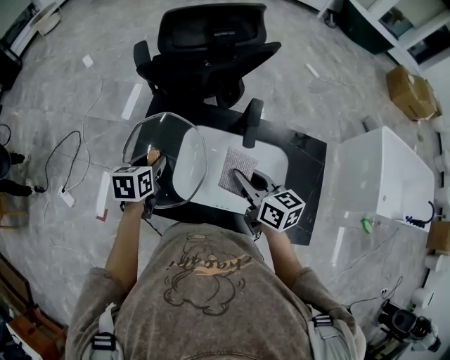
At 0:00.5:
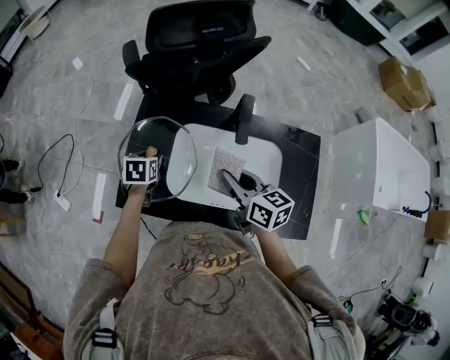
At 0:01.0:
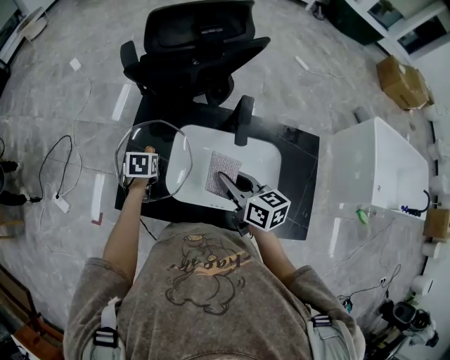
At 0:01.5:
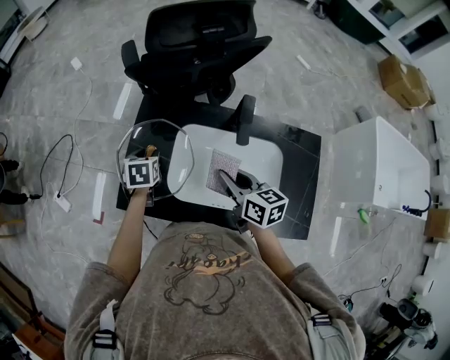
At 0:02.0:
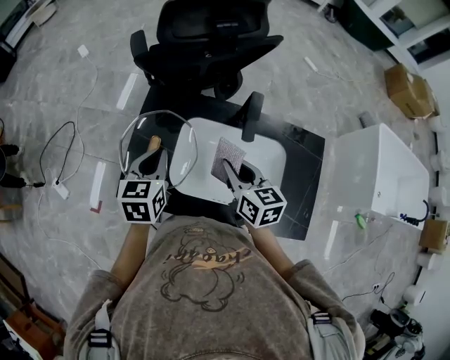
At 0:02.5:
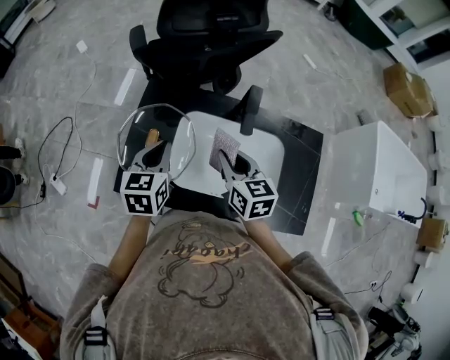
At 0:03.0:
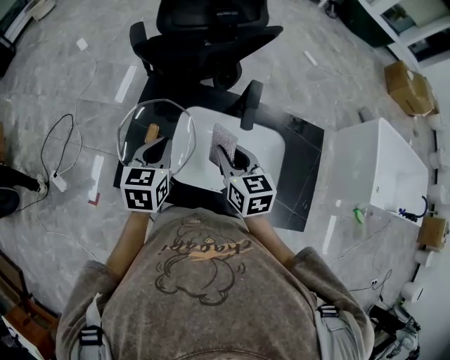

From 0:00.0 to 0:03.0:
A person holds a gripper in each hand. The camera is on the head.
From 0:00.0 to 0:01.5: The left gripper moves downward, some 5 cm.
From 0:01.5 to 0:03.0: The left gripper shifts approximately 15 cm upward, backward and to the right, swivels approximately 20 degrees, and closes up.

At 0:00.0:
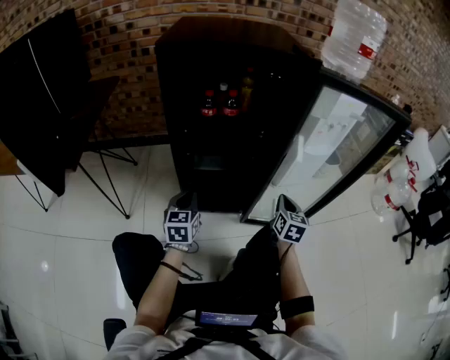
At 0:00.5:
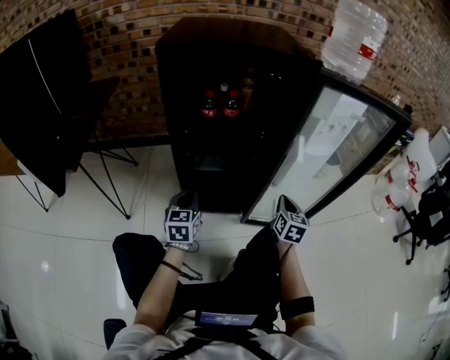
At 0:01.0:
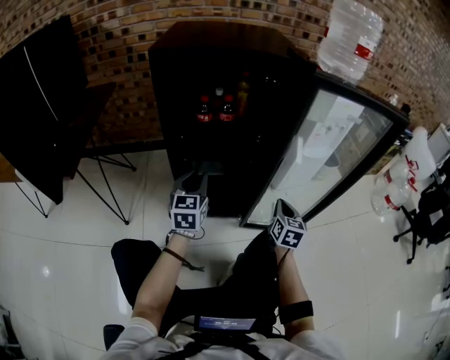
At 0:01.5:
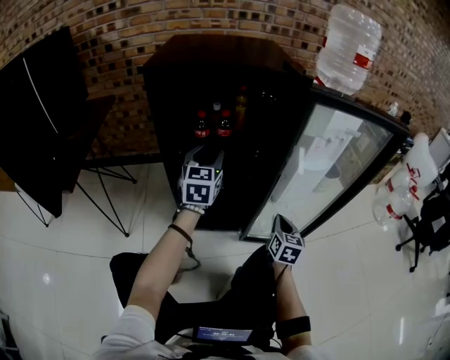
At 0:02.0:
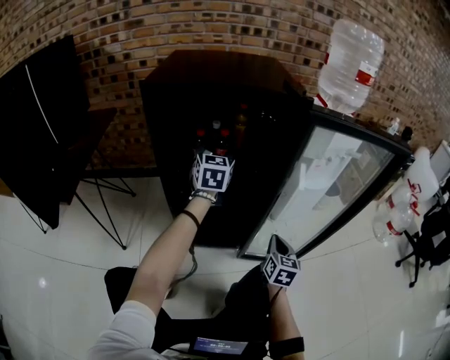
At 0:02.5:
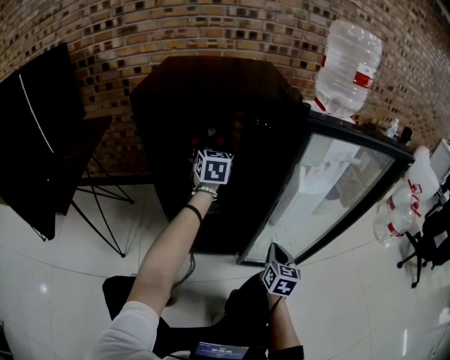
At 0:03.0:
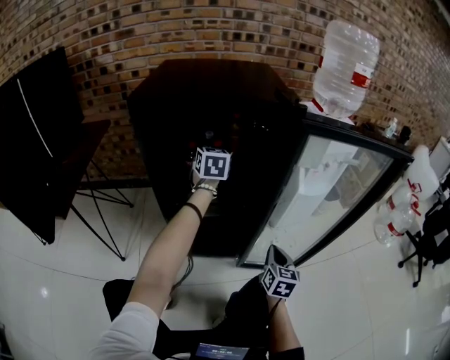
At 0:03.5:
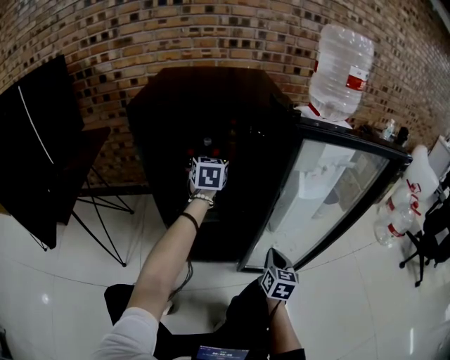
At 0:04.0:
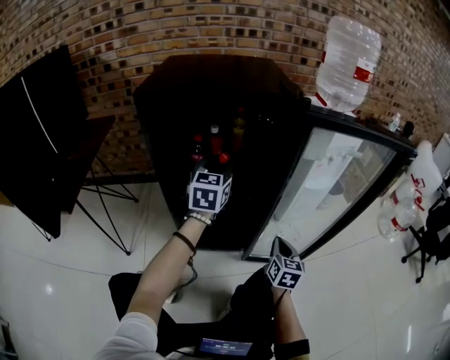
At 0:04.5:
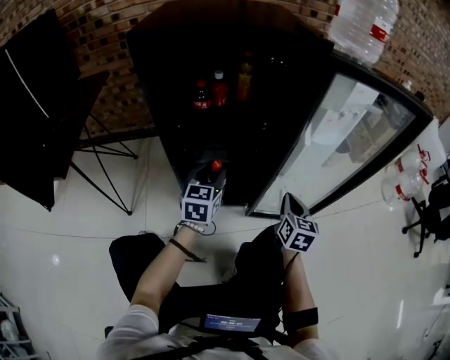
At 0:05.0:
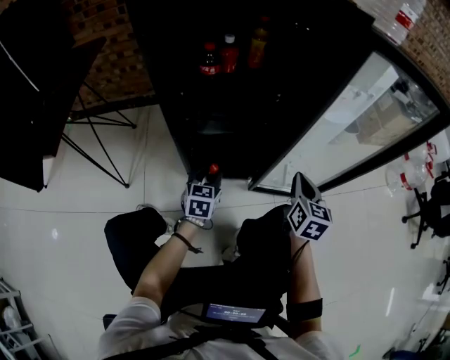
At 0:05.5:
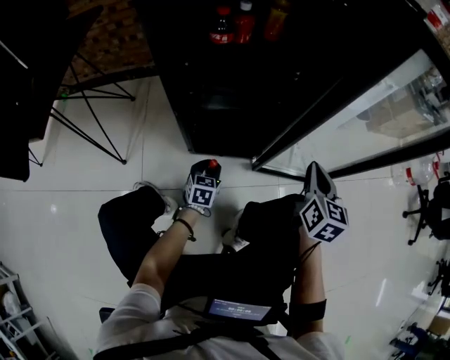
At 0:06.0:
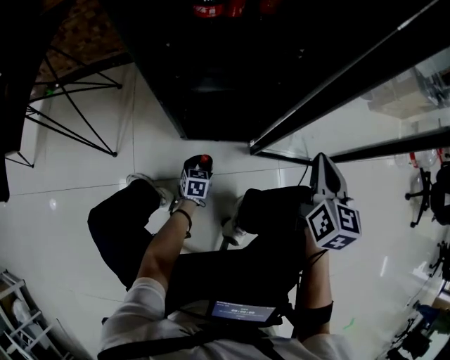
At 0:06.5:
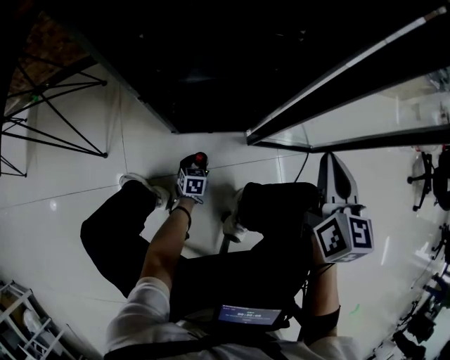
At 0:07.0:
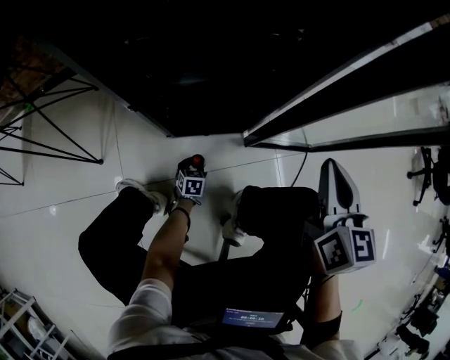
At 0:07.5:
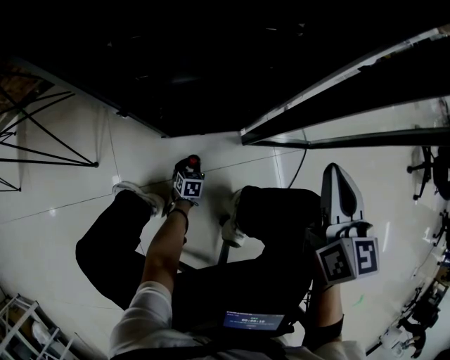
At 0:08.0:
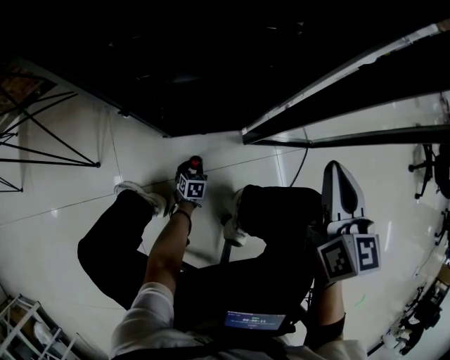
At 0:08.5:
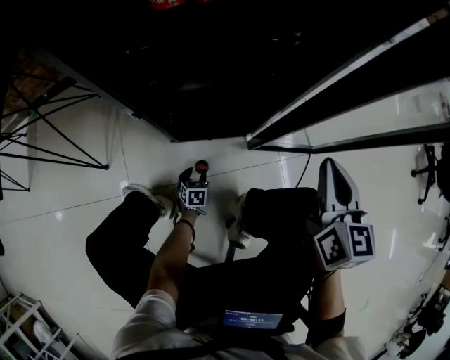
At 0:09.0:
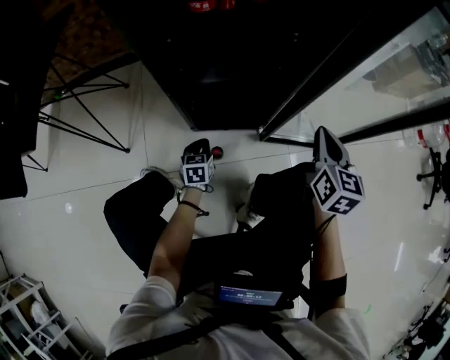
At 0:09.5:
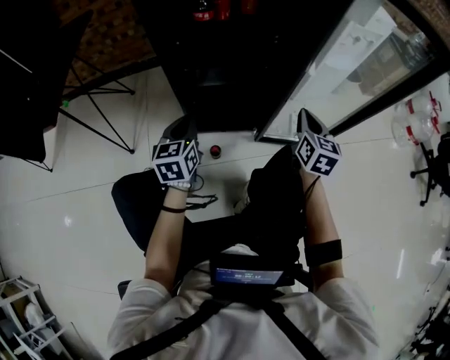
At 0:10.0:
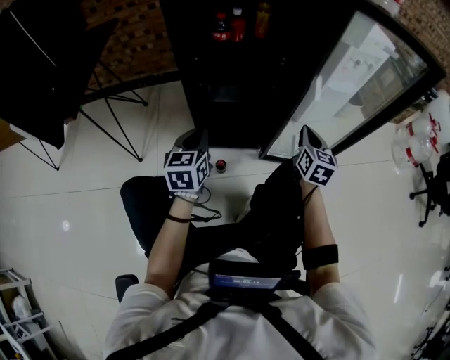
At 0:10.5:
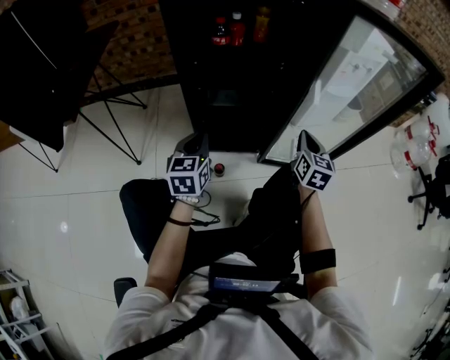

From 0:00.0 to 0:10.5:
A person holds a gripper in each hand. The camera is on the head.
From 0:00.0 to 0:02.0: The left gripper is displaced forward and upward by about 30 cm, and opens.
From 0:02.0 to 0:04.0: The left gripper closes.
From 0:04.0 to 0:06.5: The left gripper shifts about 70 cm downward, and angles its fingers downward, by about 40 degrees.
From 0:08.5 to 0:10.5: The left gripper goes about 50 cm upward, tips its fingers upward by approximately 40 degrees, and closes.

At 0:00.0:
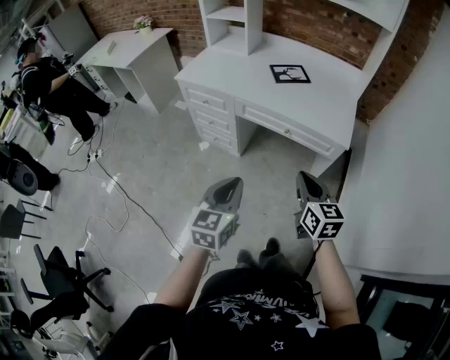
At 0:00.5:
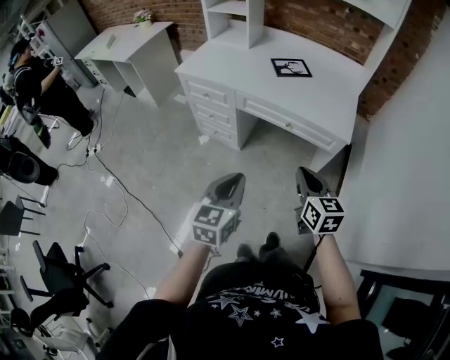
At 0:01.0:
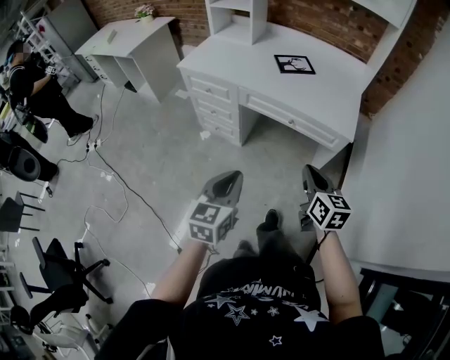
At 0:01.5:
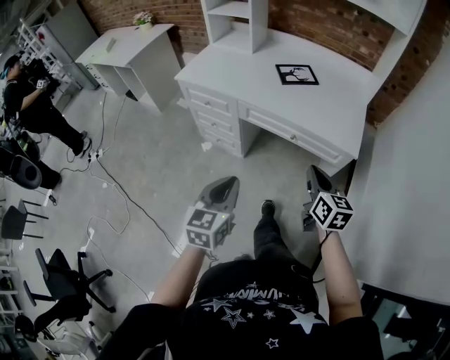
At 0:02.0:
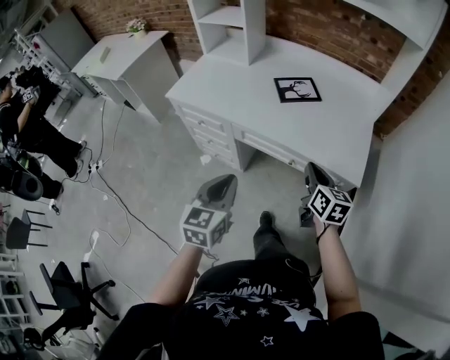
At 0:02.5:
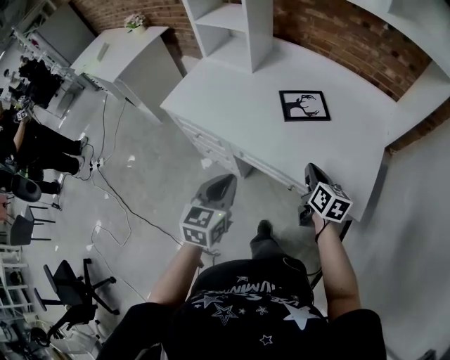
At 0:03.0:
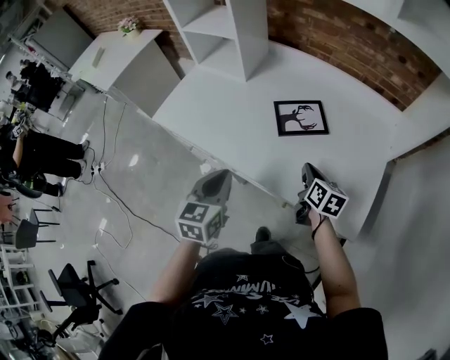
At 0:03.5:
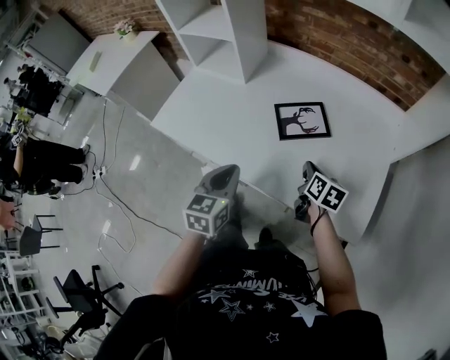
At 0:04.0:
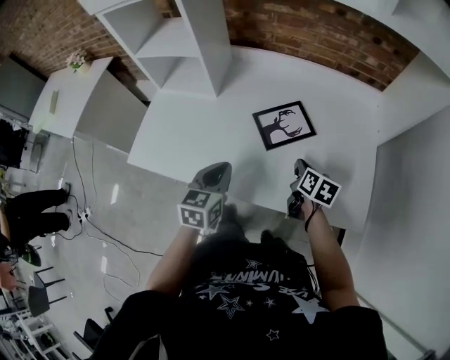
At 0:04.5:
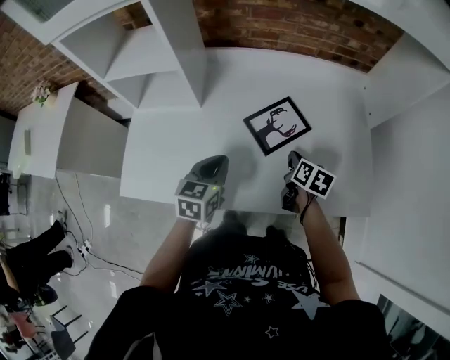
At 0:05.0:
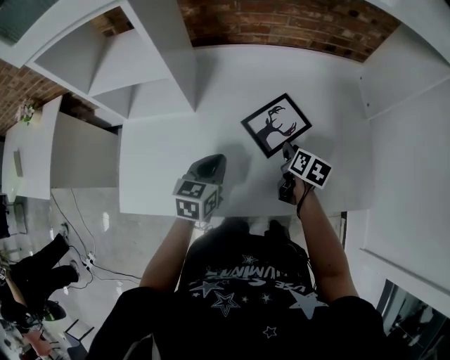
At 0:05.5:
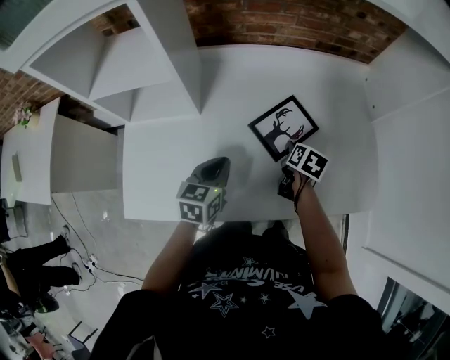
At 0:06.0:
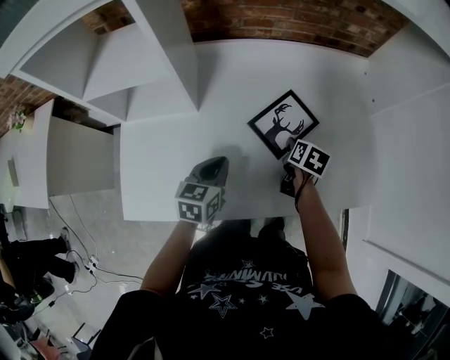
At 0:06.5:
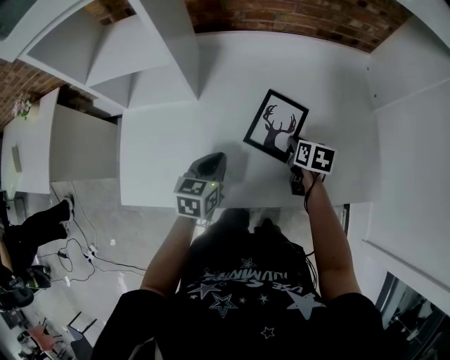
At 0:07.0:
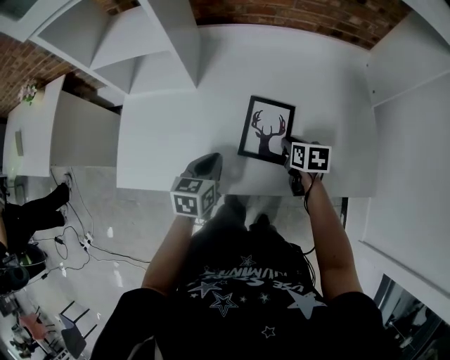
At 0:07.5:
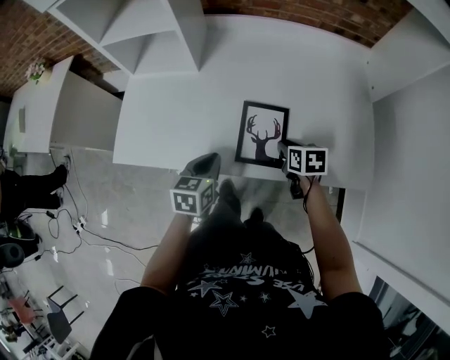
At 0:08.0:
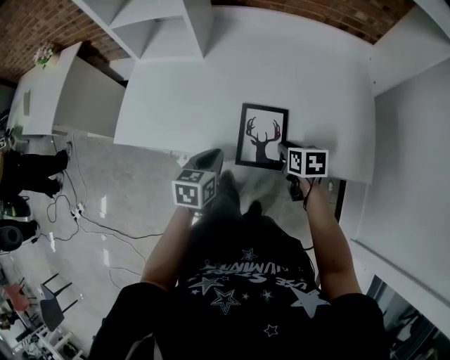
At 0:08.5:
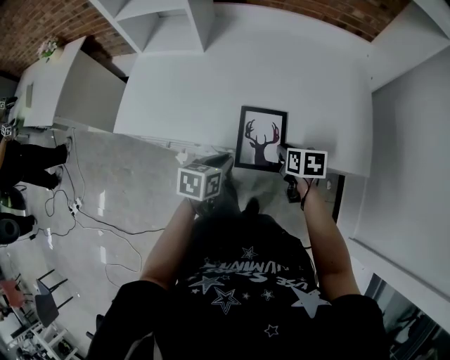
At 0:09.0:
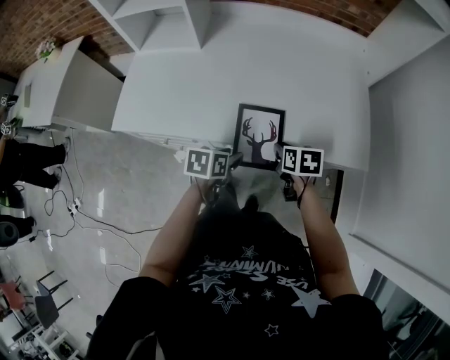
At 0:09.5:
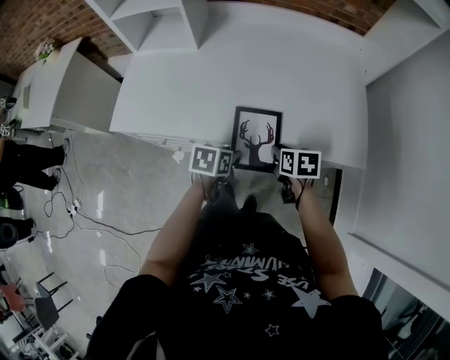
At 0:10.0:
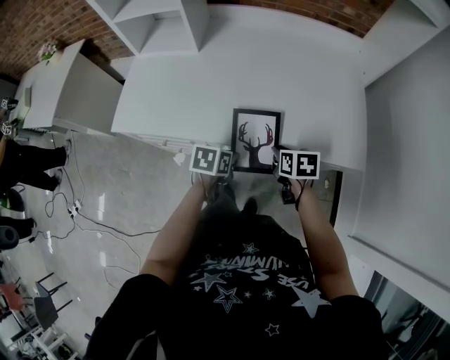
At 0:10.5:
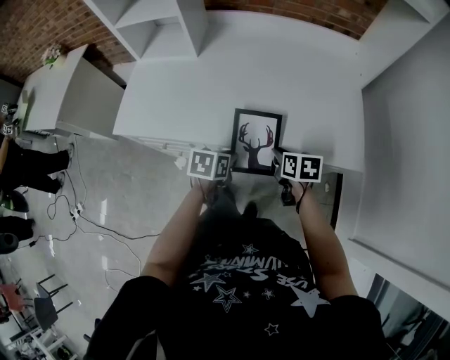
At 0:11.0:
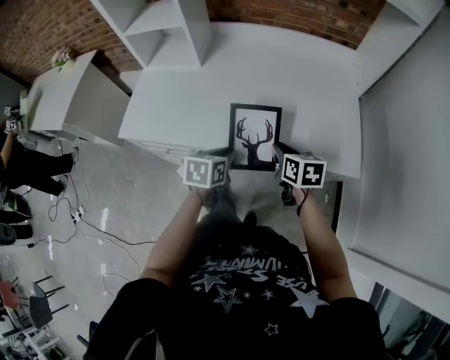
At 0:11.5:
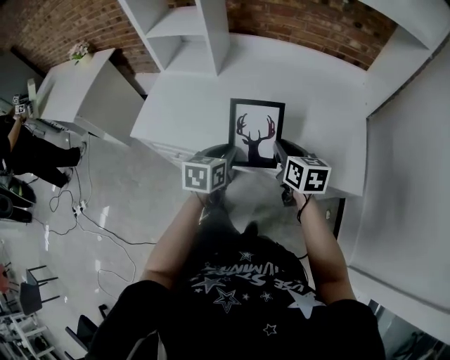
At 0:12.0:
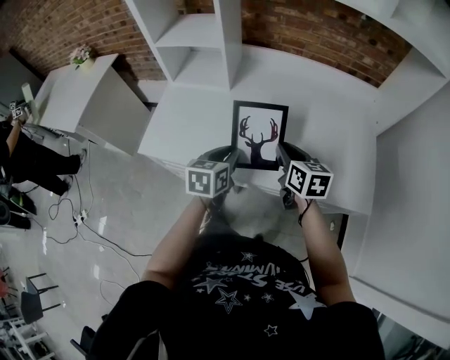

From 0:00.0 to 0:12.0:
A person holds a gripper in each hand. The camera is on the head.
From 0:00.0 to 0:02.0: Both grippers travel together forward, roughly 20 cm.
From 0:02.0 to 0:04.0: Both grippers move forward, approximately 30 cm. The right gripper turns by some 30 degrees.
From 0:04.0 to 0:06.0: The left gripper moves some 15 cm, and rotates about 20 degrees. The right gripper moves about 10 cm, turns by about 30 degrees, and opens up.
From 0:06.0 to 0:08.0: The left gripper shifts by some 20 cm, while the right gripper ends up about 15 cm from where it was, and rotates some 40 degrees.
From 0:08.0 to 0:10.0: The right gripper travels backward by roughly 5 cm. Meanwhile the left gripper goes about 10 cm to the right and downward, and changes its angle by approximately 20 degrees.
From 0:10.0 to 0:12.0: The grippers both shift upward, forward and to the left by some 20 cm. The left gripper turns by approximately 30 degrees. Meanwhile the right gripper changes its angle by about 30 degrees.

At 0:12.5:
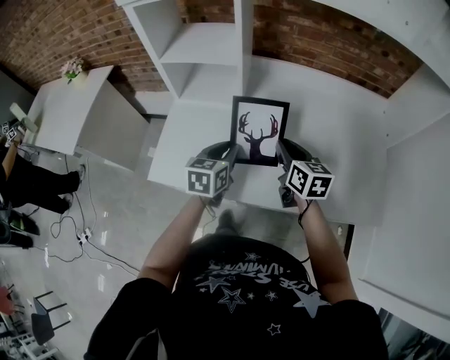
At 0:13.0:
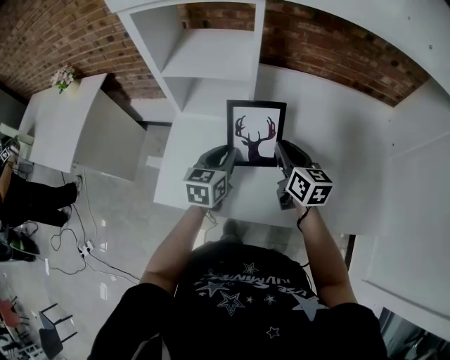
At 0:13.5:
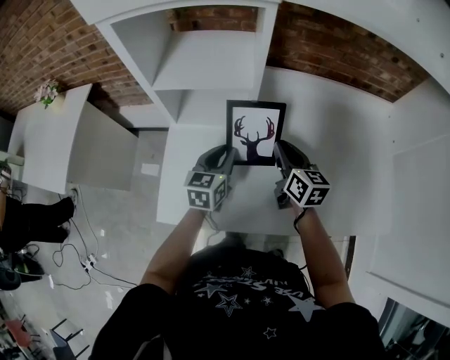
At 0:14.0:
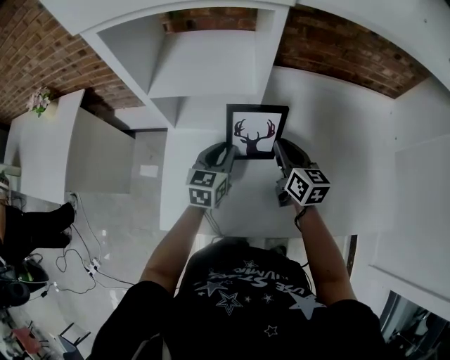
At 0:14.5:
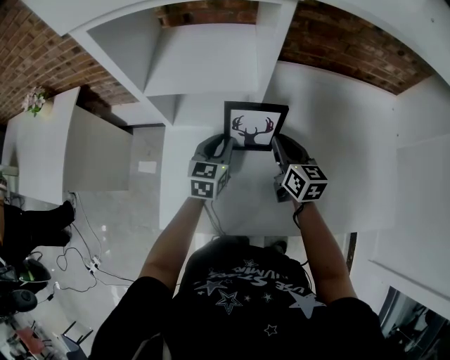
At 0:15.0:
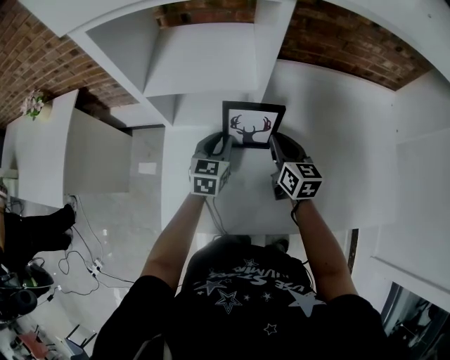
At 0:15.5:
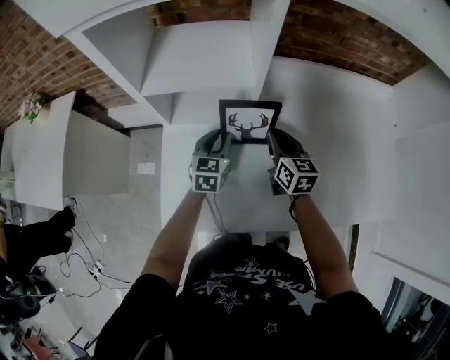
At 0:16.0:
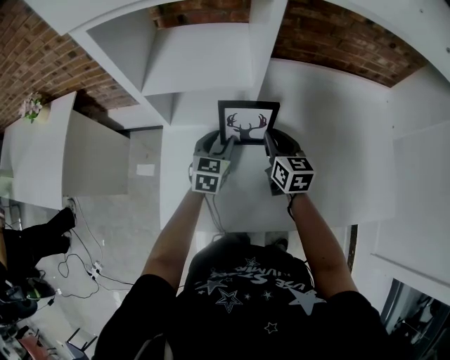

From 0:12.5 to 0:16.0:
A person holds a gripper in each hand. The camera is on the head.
From 0:12.5 to 0:14.5: The two grippers go about 15 cm forward and to the left.
From 0:14.5 to 0:16.0: The grippers move only a little.
